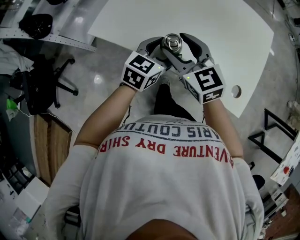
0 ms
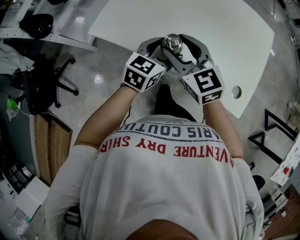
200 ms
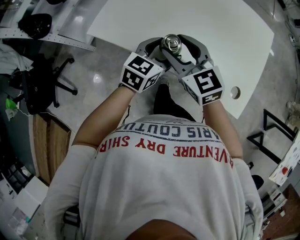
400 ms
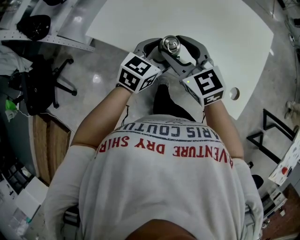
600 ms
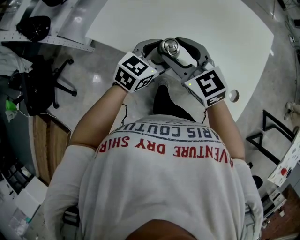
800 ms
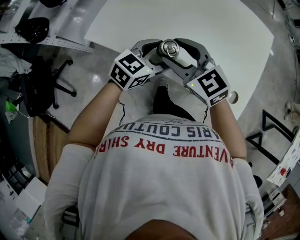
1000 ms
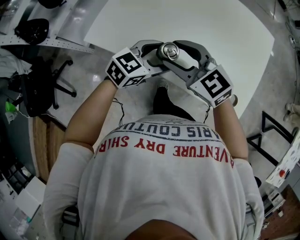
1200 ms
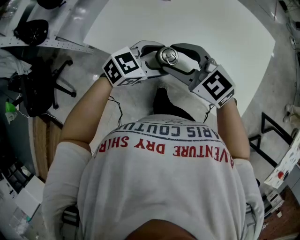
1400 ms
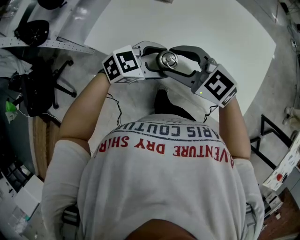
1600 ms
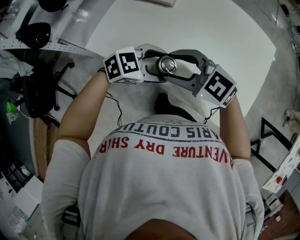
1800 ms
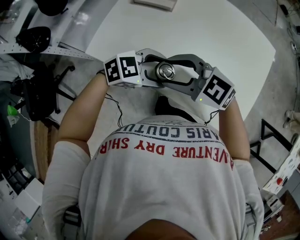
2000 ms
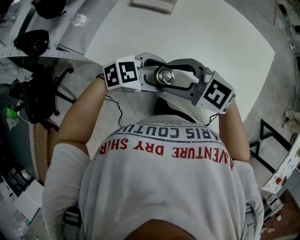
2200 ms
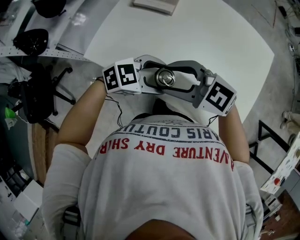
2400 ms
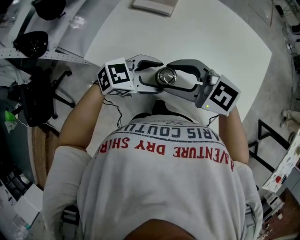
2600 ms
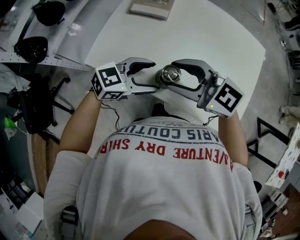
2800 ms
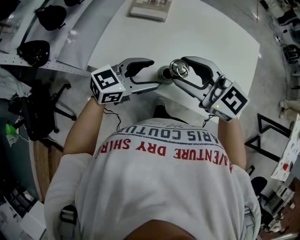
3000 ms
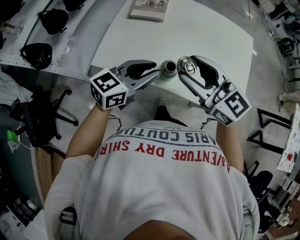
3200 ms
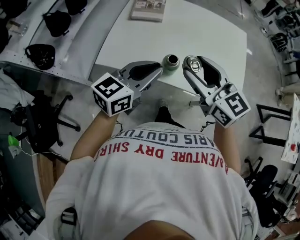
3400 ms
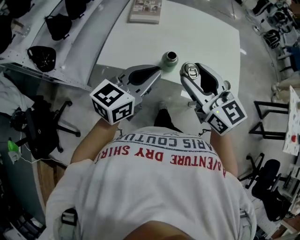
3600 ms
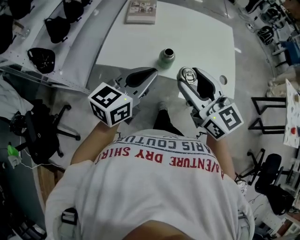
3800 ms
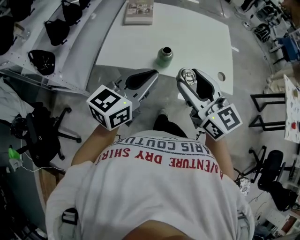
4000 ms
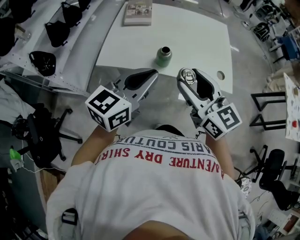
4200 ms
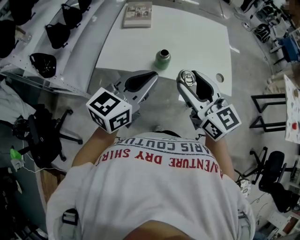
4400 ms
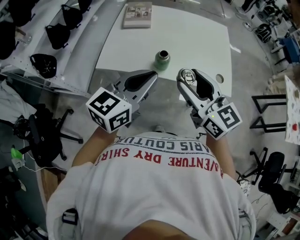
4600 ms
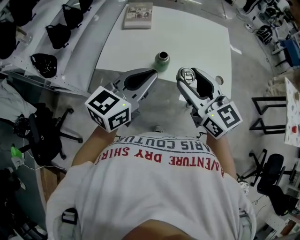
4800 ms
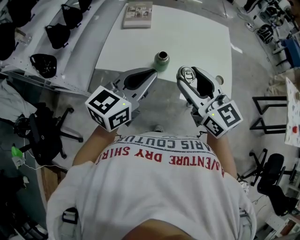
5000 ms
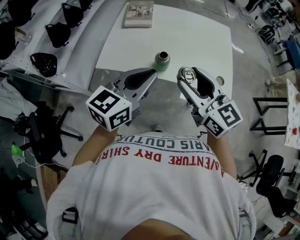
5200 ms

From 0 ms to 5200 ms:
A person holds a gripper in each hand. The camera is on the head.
From 0 ms to 1800 ms: The right gripper changes its angle by some 40 degrees. The left gripper swivels about 40 degrees.
From 1800 ms to 3400 ms: The two grippers go roughly 15 cm upward. The left gripper changes its angle by approximately 40 degrees, and closes up; the right gripper swivels approximately 50 degrees.
From 3400 ms to 5200 ms: The left gripper shifts roughly 10 cm backward and upward. The right gripper moves backward, some 10 cm.

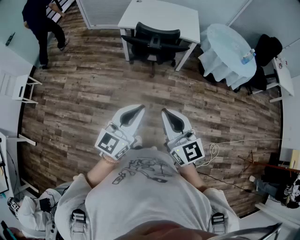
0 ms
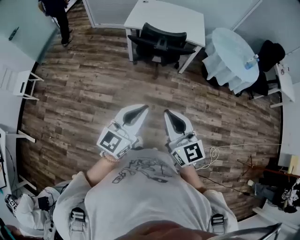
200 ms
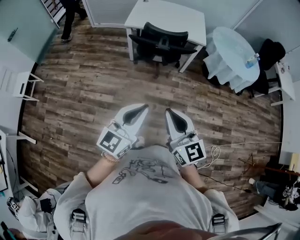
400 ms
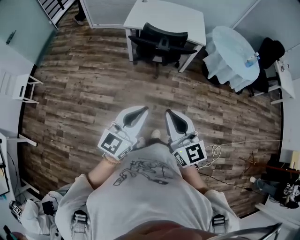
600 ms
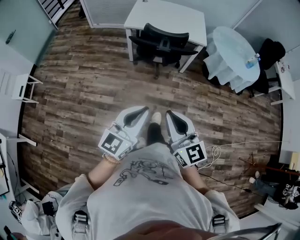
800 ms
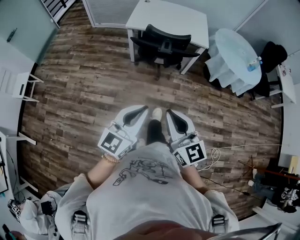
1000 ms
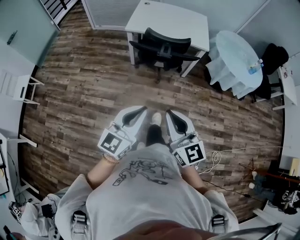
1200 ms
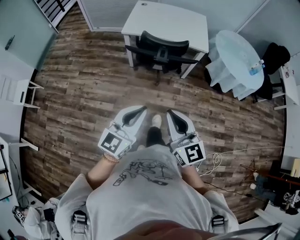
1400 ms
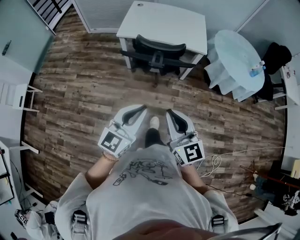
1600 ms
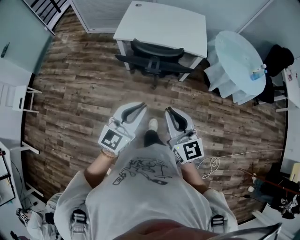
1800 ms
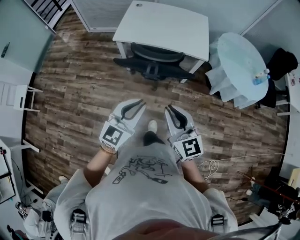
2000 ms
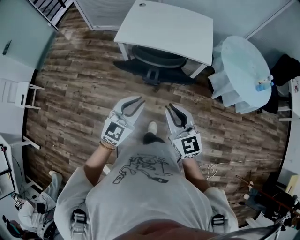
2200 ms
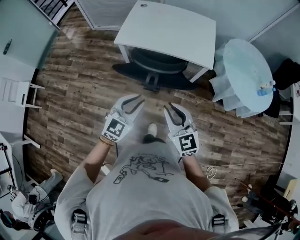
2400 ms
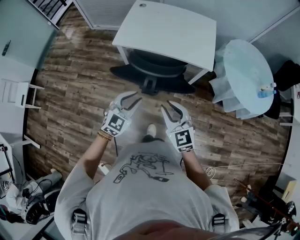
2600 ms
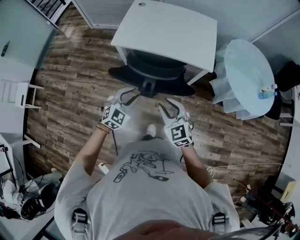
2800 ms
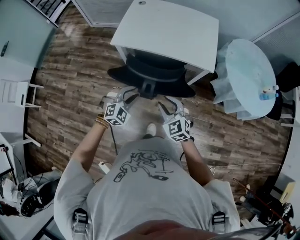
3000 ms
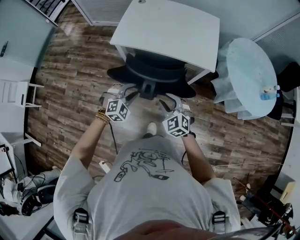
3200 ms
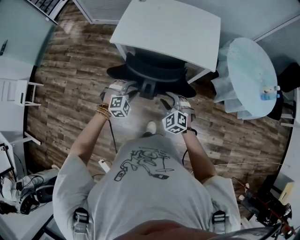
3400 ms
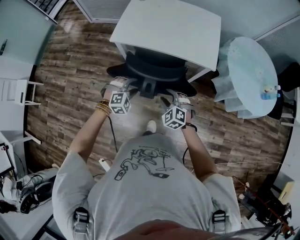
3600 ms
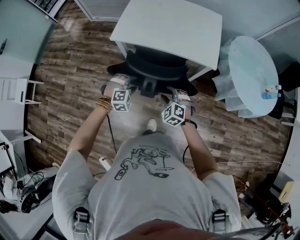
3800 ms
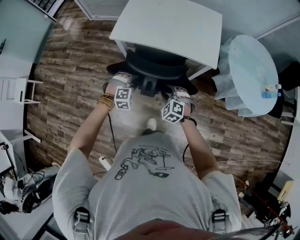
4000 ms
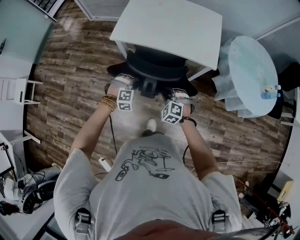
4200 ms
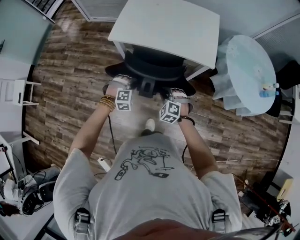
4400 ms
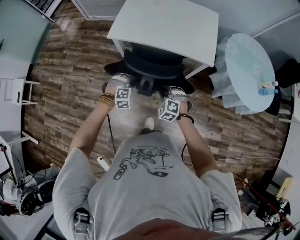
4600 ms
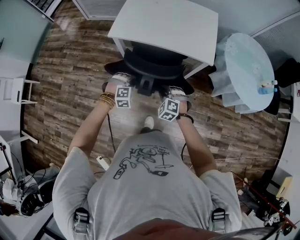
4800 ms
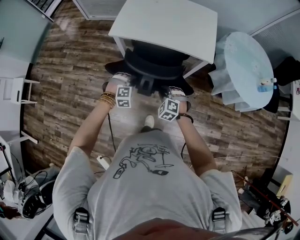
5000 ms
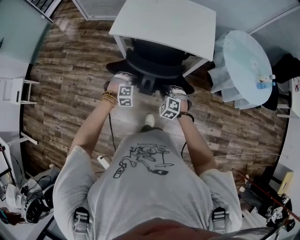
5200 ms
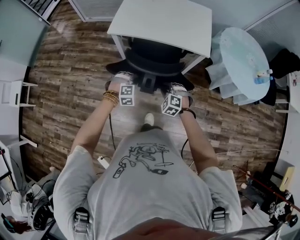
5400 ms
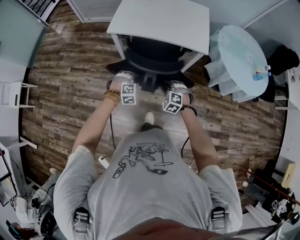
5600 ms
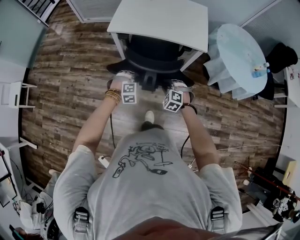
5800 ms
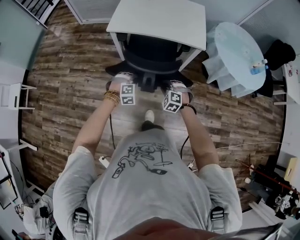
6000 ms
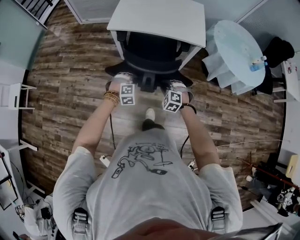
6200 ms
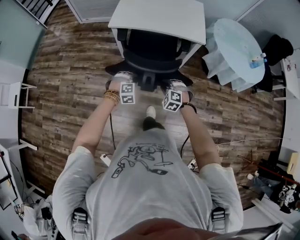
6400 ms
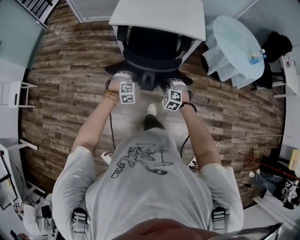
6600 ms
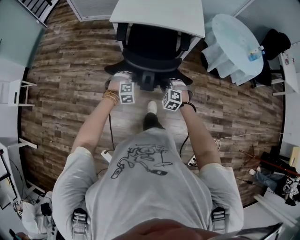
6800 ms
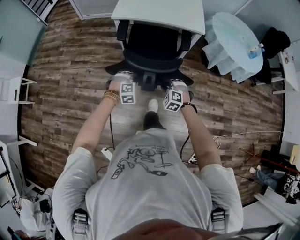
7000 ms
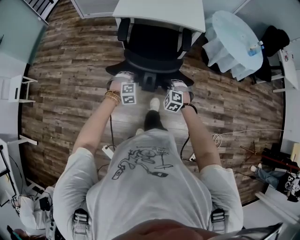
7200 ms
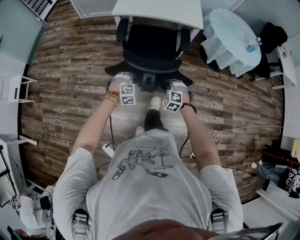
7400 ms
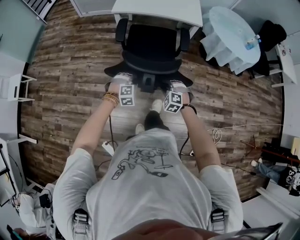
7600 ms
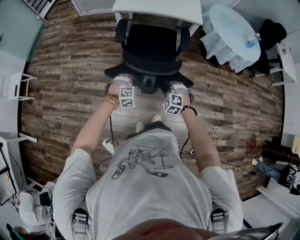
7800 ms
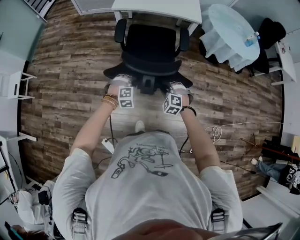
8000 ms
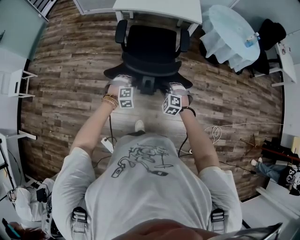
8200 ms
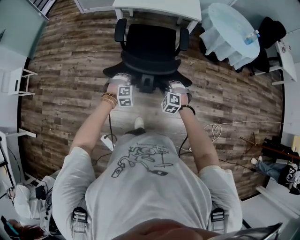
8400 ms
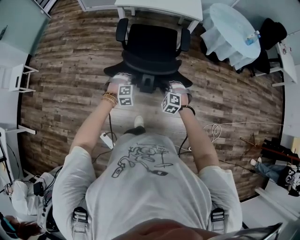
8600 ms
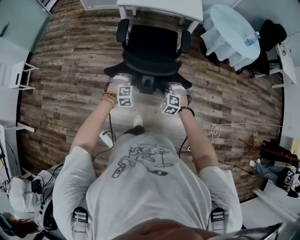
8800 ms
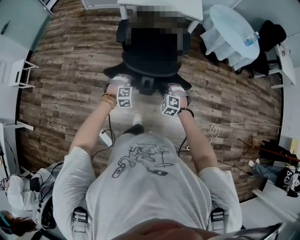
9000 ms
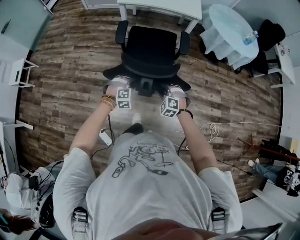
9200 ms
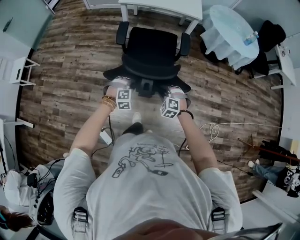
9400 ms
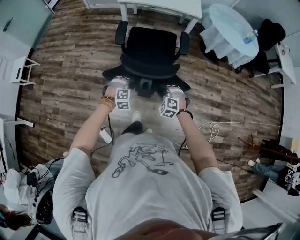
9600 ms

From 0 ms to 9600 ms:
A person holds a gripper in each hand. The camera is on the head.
From 0 ms to 1600 ms: The two grippers go about 20 cm forward.
From 1600 ms to 3200 ms: Both grippers travel together forward and downward, roughly 40 cm. The left gripper tips its fingers downward by some 40 degrees, and opens its fingers, while the right gripper tips its fingers downward by approximately 30 degrees, and opens.
From 3200 ms to 4800 ms: Both grippers move downward, approximately 10 cm. The left gripper rotates roughly 20 degrees, while the right gripper rotates some 30 degrees.
From 4800 ms to 6400 ms: Both grippers move backward, approximately 20 cm.
From 6400 ms to 8000 ms: Both grippers move backward, about 25 cm.
From 8000 ms to 9600 ms: The two grippers go roughly 15 cm backward.

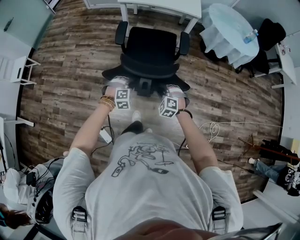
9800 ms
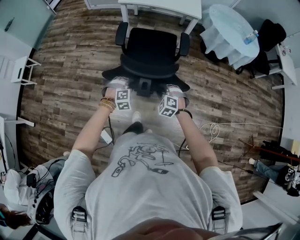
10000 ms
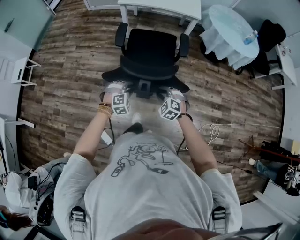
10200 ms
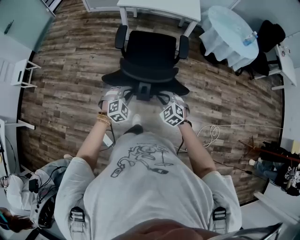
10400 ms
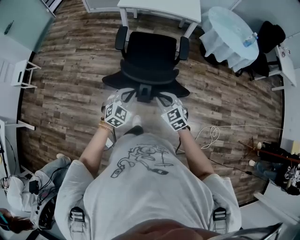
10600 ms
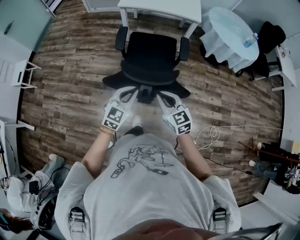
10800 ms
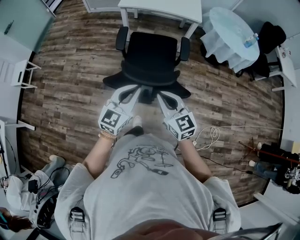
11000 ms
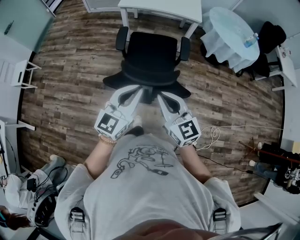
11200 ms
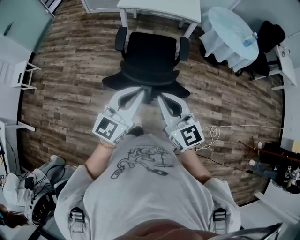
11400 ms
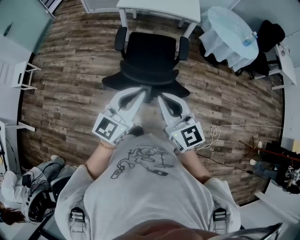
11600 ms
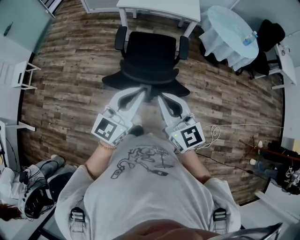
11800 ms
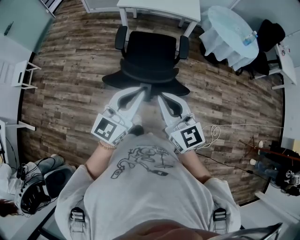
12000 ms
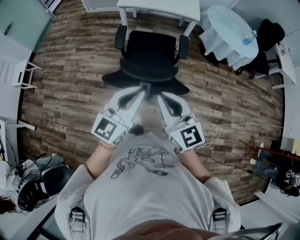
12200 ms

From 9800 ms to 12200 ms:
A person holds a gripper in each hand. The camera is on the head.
From 9800 ms to 11000 ms: Both grippers travel together upward, some 25 cm. The right gripper points its fingers about 40 degrees further upward, and closes its fingers, while the left gripper tilts its fingers approximately 50 degrees upward, and closes up.
From 11000 ms to 12200 ms: The two grippers go some 10 cm upward.

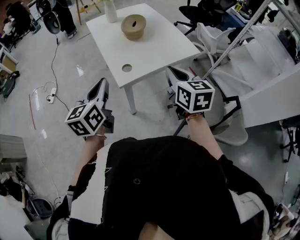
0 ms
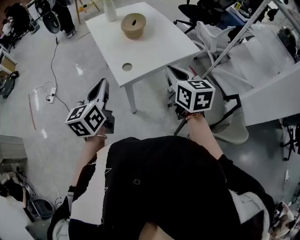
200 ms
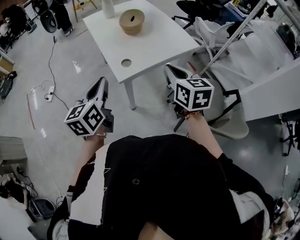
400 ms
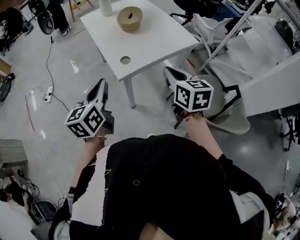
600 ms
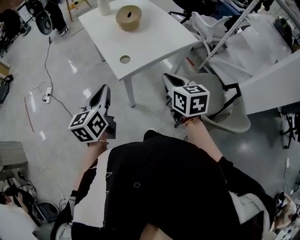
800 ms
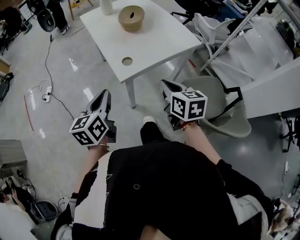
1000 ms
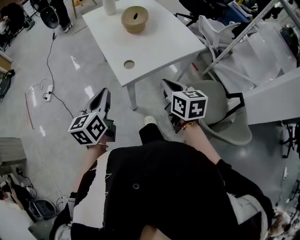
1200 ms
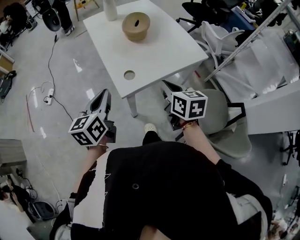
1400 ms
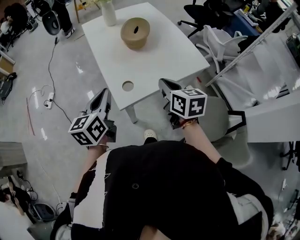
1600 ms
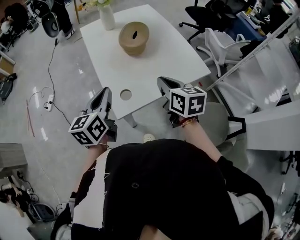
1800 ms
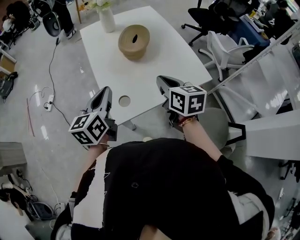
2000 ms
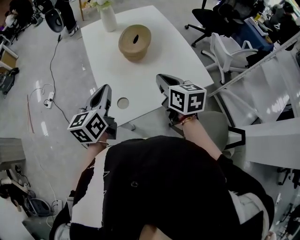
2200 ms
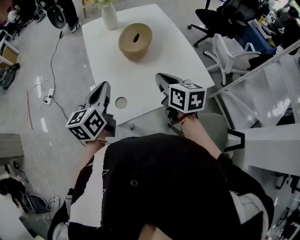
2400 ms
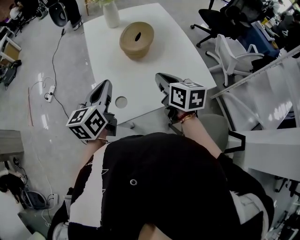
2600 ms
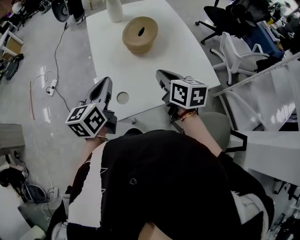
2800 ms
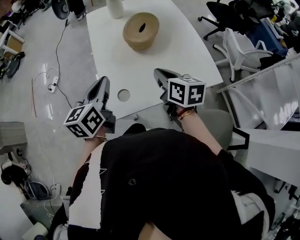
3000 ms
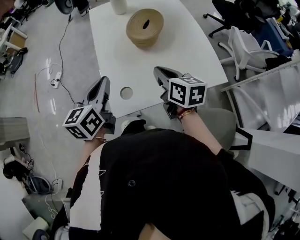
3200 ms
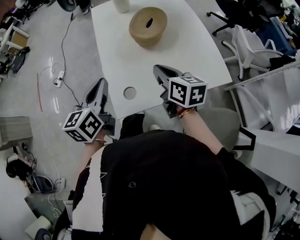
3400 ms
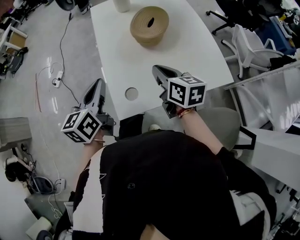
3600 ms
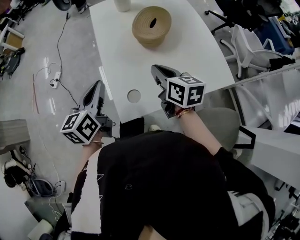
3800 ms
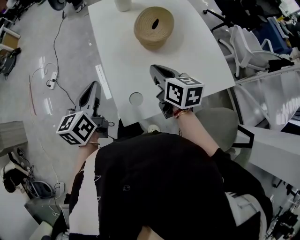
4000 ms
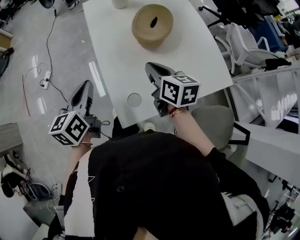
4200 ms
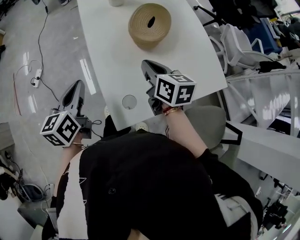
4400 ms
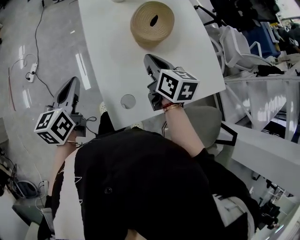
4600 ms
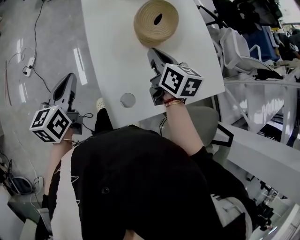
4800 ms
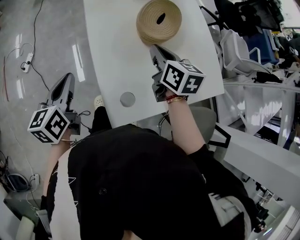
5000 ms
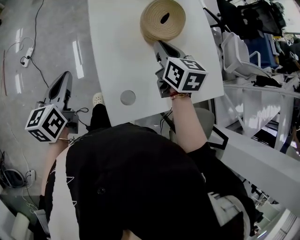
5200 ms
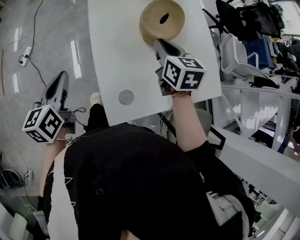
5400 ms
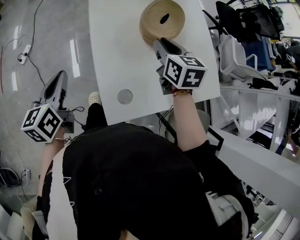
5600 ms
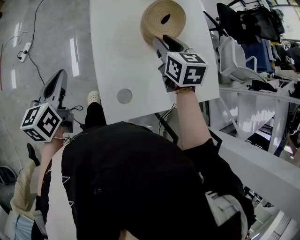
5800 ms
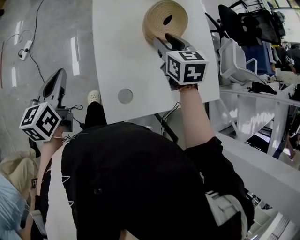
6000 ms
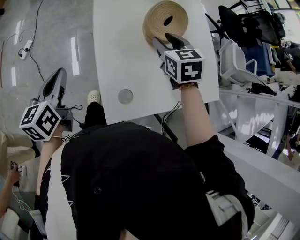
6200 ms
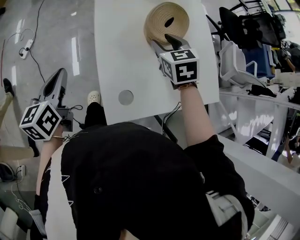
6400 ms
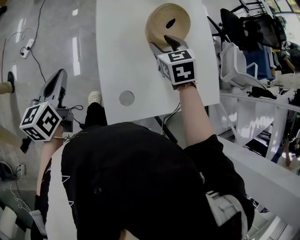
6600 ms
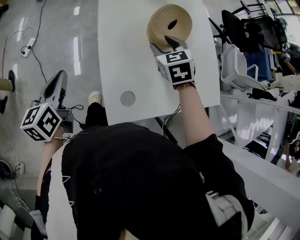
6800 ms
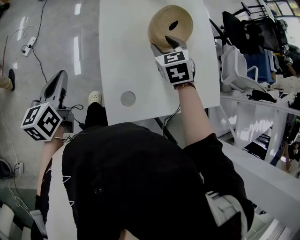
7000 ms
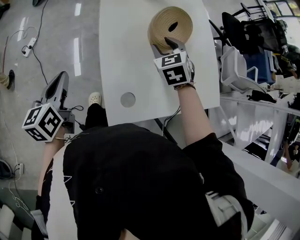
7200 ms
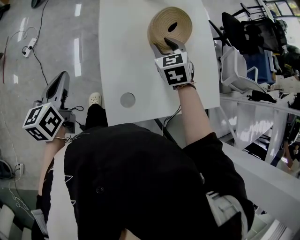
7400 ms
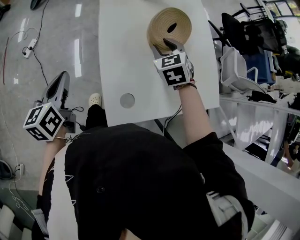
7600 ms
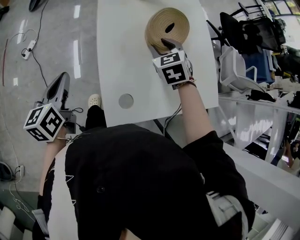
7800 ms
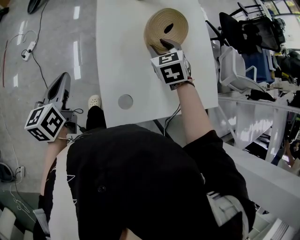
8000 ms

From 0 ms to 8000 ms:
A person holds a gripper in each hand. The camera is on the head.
From 0 ms to 1600 ms: The two grippers go about 15 cm forward and downward.
From 1600 ms to 3200 ms: The two grippers go approximately 10 cm forward.
From 3200 ms to 4800 ms: The left gripper goes some 15 cm to the left, forward and downward. The right gripper goes roughly 10 cm forward.
From 4800 ms to 6400 ms: The right gripper rotates around the line of its fingers by about 40 degrees, counterclockwise from behind, and opens up.
From 6400 ms to 8000 ms: The grippers stay close to where they were, moving slightly.
